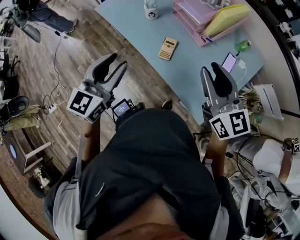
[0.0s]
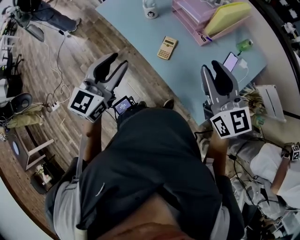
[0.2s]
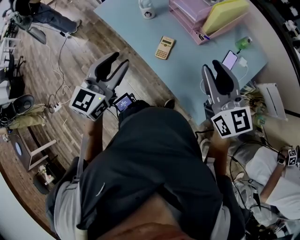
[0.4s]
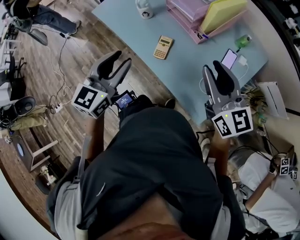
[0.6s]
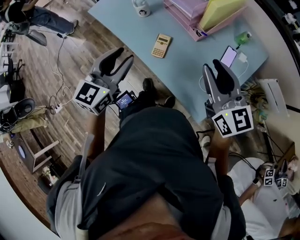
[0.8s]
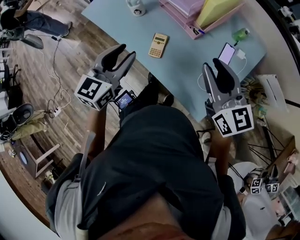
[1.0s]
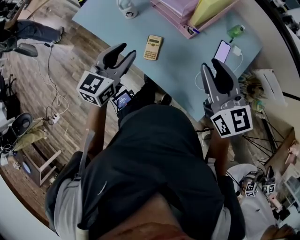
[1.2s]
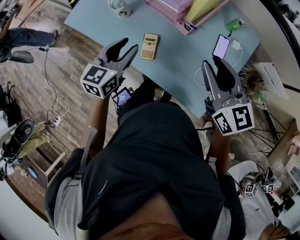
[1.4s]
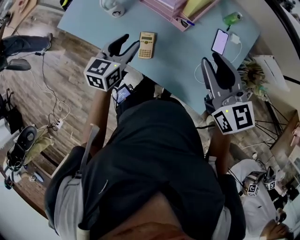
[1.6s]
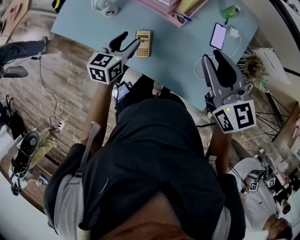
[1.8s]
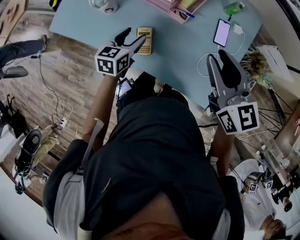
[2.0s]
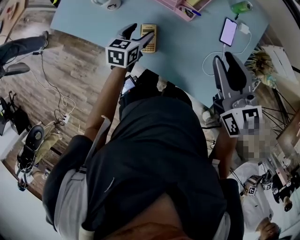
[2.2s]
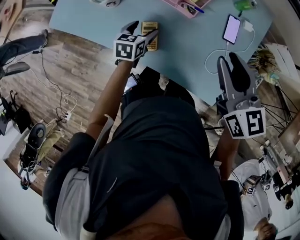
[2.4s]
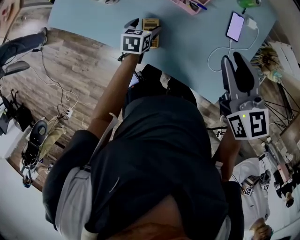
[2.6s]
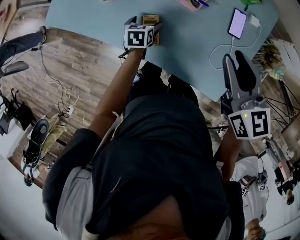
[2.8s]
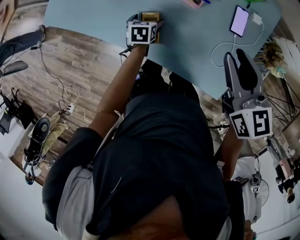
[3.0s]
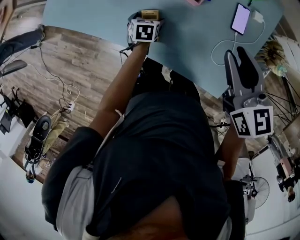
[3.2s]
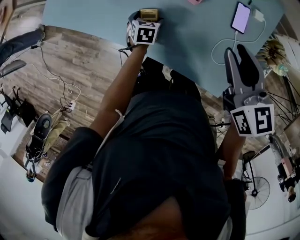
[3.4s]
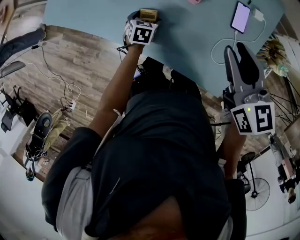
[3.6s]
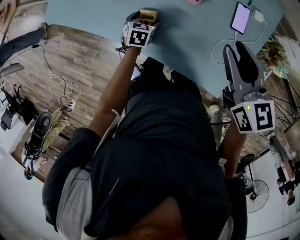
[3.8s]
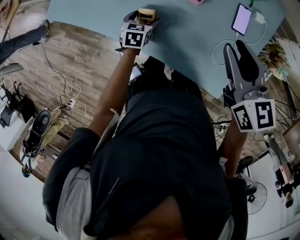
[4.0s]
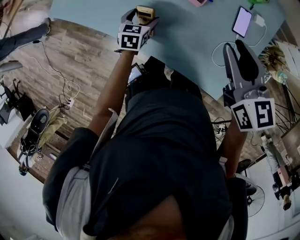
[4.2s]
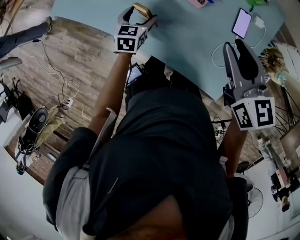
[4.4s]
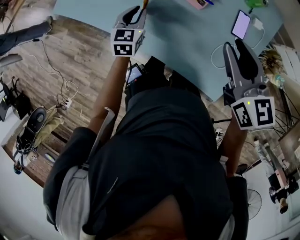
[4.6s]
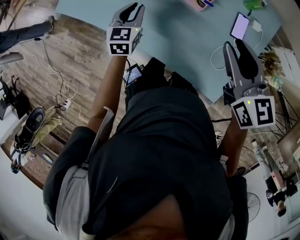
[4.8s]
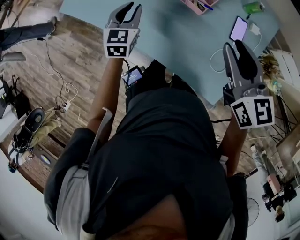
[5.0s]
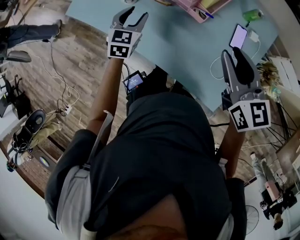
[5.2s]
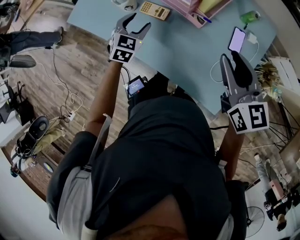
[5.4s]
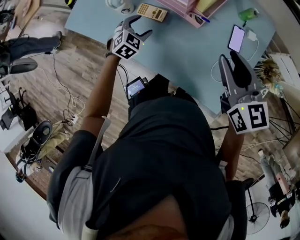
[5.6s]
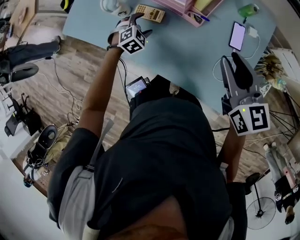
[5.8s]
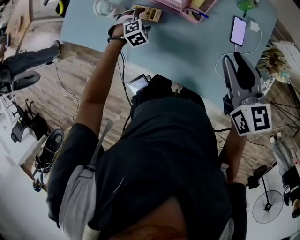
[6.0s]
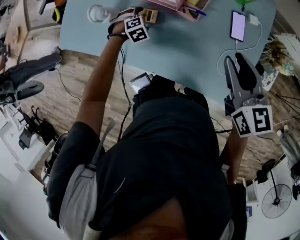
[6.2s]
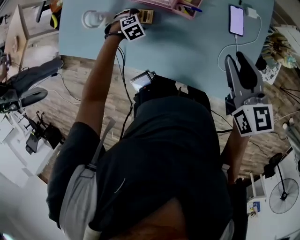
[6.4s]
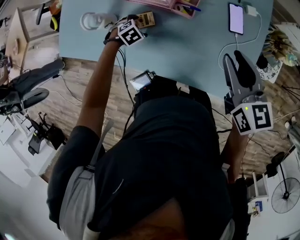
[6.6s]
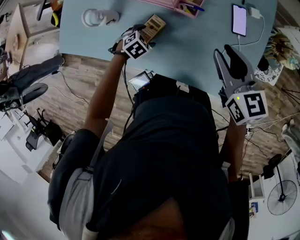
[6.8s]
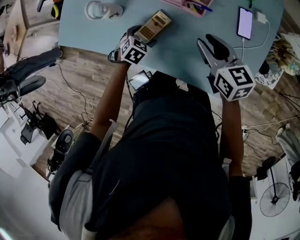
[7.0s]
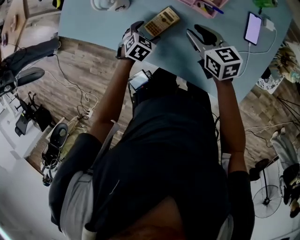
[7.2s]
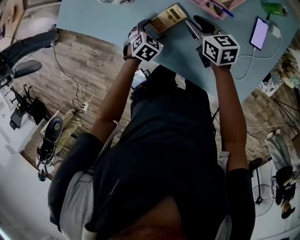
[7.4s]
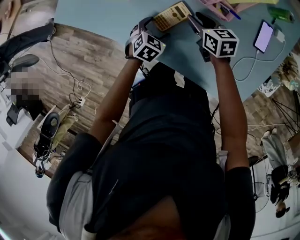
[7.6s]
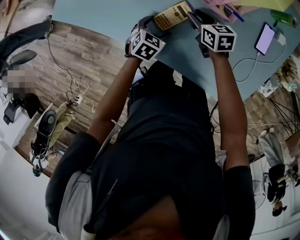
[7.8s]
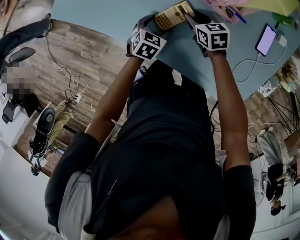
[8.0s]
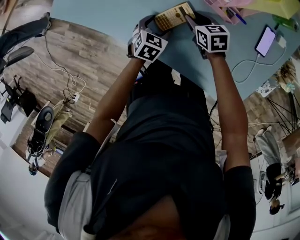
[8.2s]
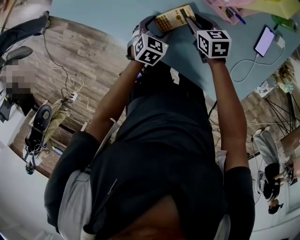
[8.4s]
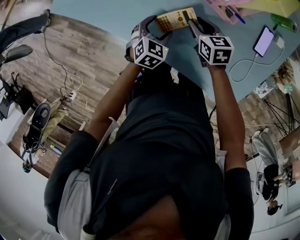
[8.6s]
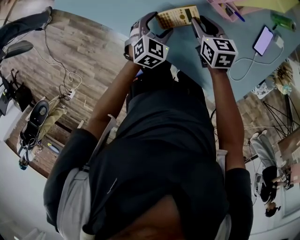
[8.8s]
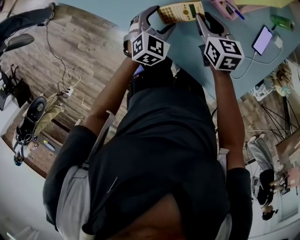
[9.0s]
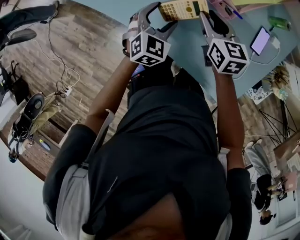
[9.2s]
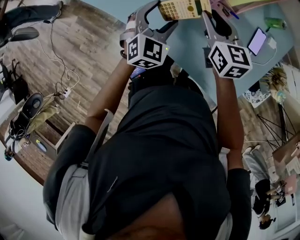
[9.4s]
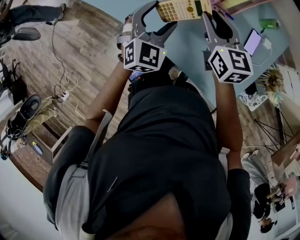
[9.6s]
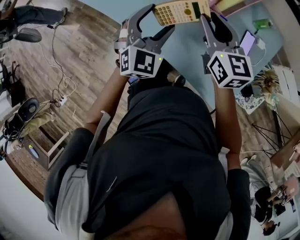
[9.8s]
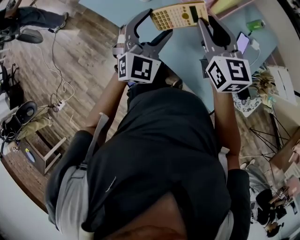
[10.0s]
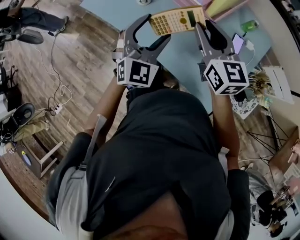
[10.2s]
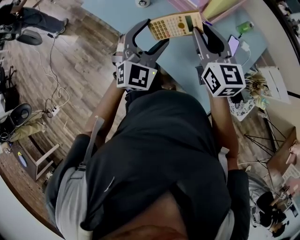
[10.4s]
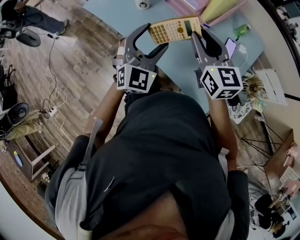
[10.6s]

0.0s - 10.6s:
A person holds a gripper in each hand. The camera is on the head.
0.0s - 1.6s: The right gripper travels forward, to the right and downward by roughly 15 cm; the left gripper goes approximately 25 cm forward, downward and to the right, and turns by about 20 degrees.
1.6s - 3.0s: The left gripper goes about 25 cm downward, tips its fingers downward by some 30 degrees, and opens up; the right gripper shifts about 5 cm downward.
3.0s - 4.6s: The left gripper shifts some 15 cm upward, changes its angle by roughly 30 degrees, and closes up.
4.6s - 6.0s: The left gripper heads downward and forward, covering about 15 cm, rolls clockwise, seen from behind, by some 60 degrees, and opens.
6.0s - 7.6s: The left gripper ends up about 10 cm from where it was, and twists some 40 degrees counterclockwise, seen from behind, while the right gripper heads downward, covering about 30 cm, and changes its angle by approximately 30 degrees.
7.6s - 9.0s: The two grippers go approximately 10 cm upward. The left gripper changes its angle by roughly 20 degrees.
9.0s - 10.6s: The two grippers go about 35 cm upward and backward. The right gripper changes its angle by some 30 degrees, while the left gripper points its fingers roughly 30 degrees further upward.

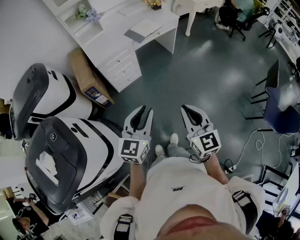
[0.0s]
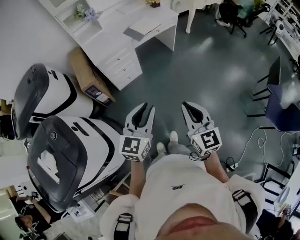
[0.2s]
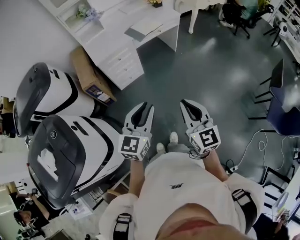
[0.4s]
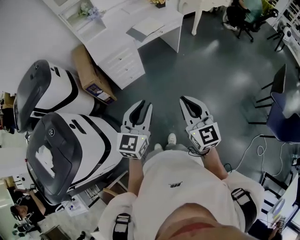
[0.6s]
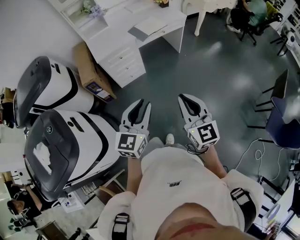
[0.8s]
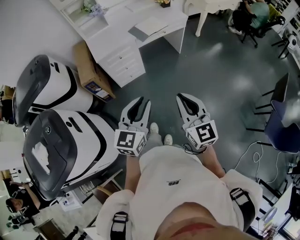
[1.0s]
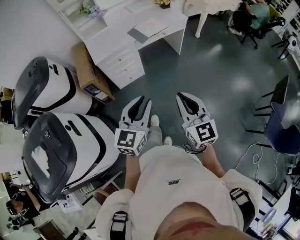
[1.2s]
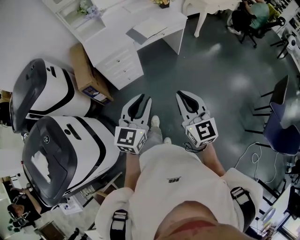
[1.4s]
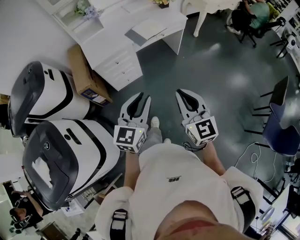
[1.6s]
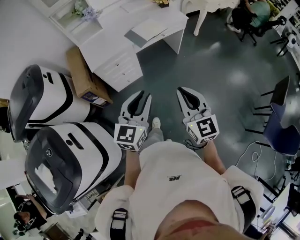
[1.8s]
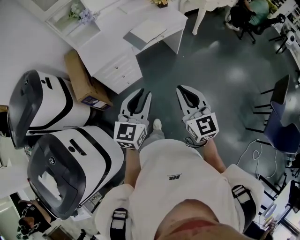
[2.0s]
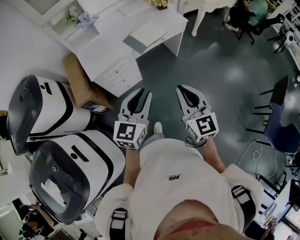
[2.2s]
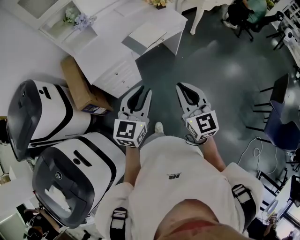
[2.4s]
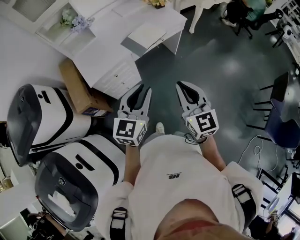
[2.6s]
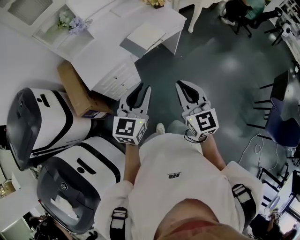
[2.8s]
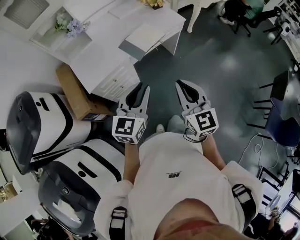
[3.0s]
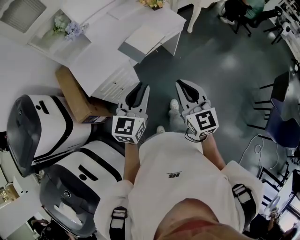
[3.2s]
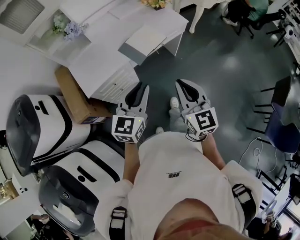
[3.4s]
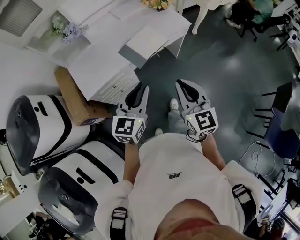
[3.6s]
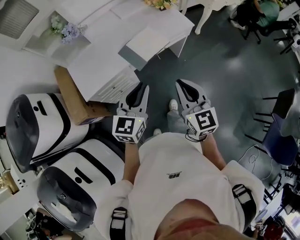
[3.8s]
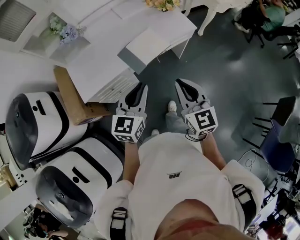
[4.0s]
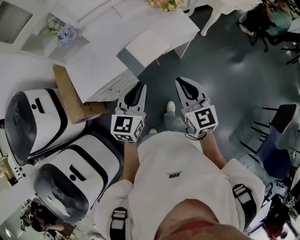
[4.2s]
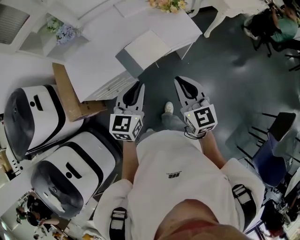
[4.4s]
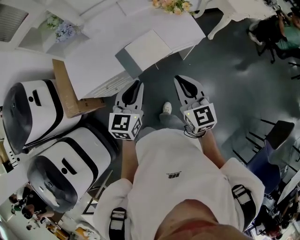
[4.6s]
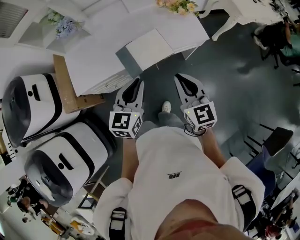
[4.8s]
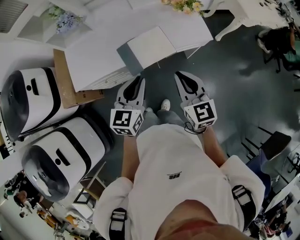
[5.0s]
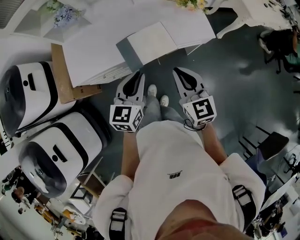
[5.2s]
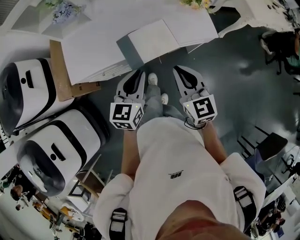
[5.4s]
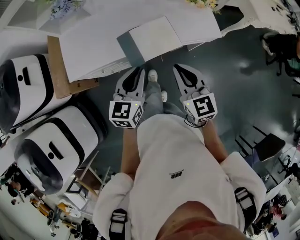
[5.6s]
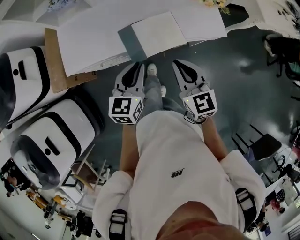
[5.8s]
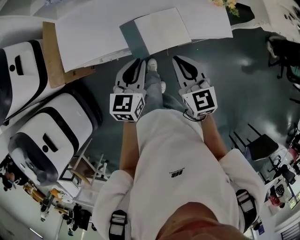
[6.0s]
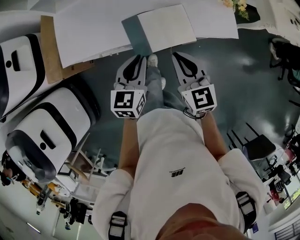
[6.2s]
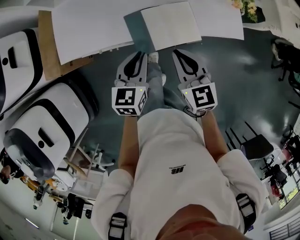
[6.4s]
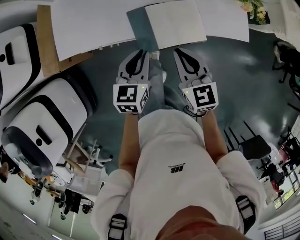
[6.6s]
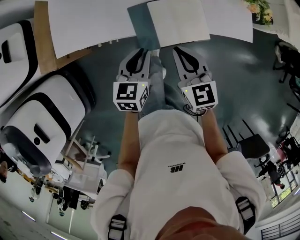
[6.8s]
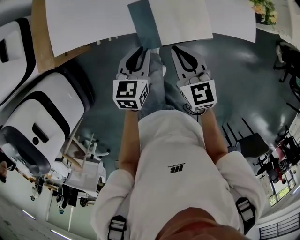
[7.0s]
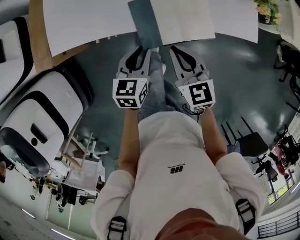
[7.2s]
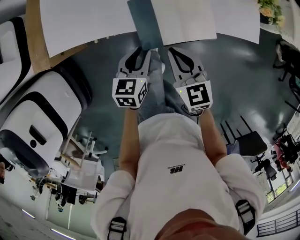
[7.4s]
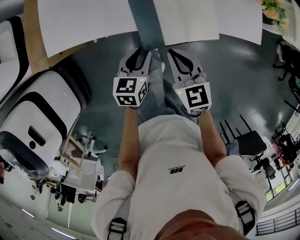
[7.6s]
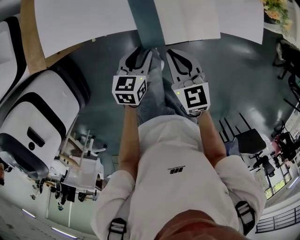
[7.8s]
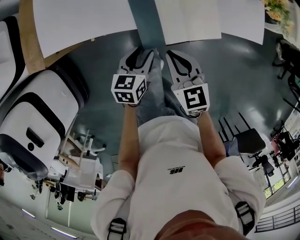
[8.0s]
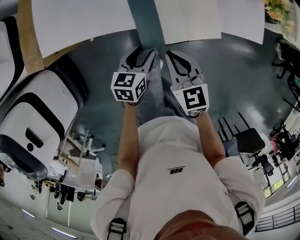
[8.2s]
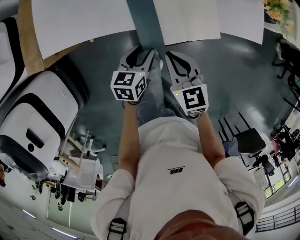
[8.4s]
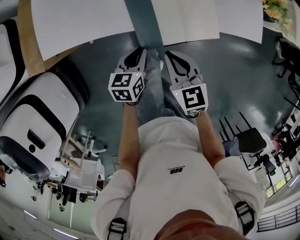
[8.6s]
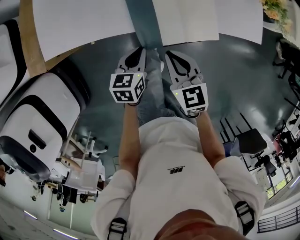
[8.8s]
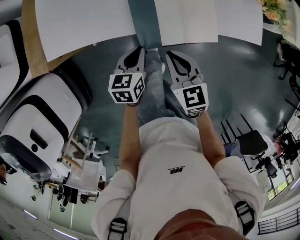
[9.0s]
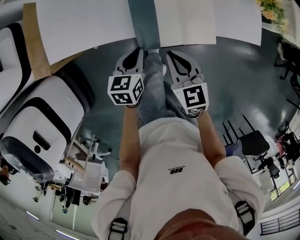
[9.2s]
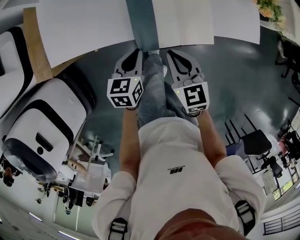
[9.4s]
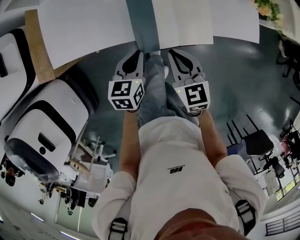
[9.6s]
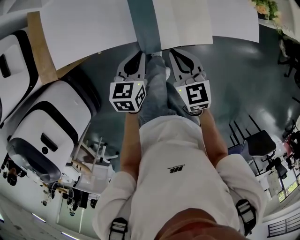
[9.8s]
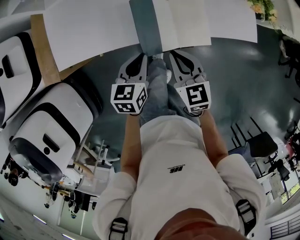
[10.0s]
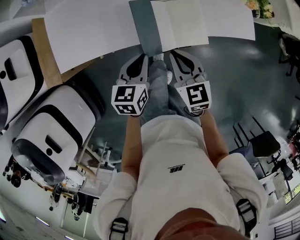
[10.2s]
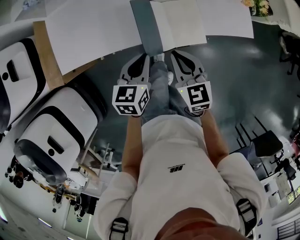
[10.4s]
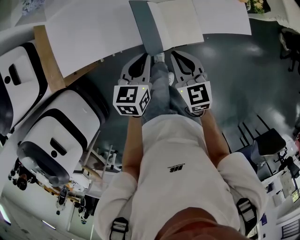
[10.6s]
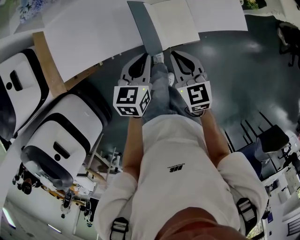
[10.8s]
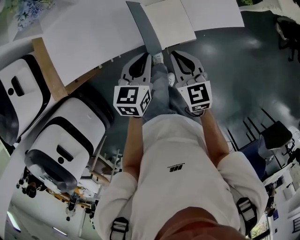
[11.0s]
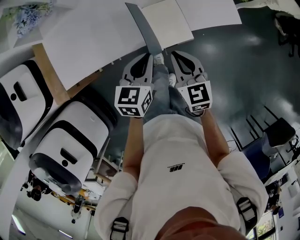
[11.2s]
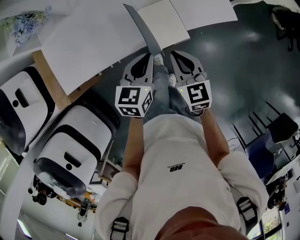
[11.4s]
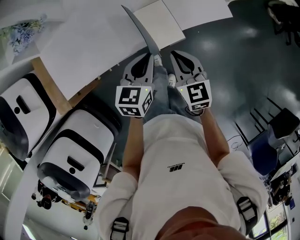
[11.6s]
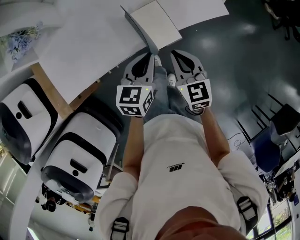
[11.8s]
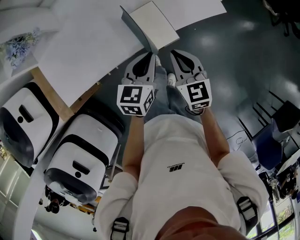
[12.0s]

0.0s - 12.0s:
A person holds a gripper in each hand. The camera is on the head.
0.0s - 1.6s: Both grippers travel together forward, approximately 15 cm.
1.6s - 3.0s: The two grippers go roughly 25 cm forward.
3.0s - 4.4s: The grippers both shift forward by about 25 cm.
4.4s - 6.0s: The left gripper shifts about 15 cm downward and forward, and rotates some 20 degrees, while the right gripper is displaced forward and downward by about 20 cm, and swivels roughly 20 degrees.
6.0s - 7.6s: The right gripper is displaced downward and to the left by about 20 cm, while the left gripper shifts some 20 cm downward.
7.6s - 9.0s: The grippers make only small movements.
9.0s - 10.4s: The left gripper shifts about 10 cm upward. Meanwhile the right gripper goes some 5 cm upward.
10.4s - 12.0s: The two grippers go roughly 10 cm to the right. The left gripper changes its angle by some 20 degrees.

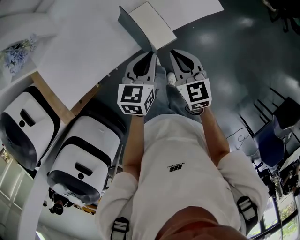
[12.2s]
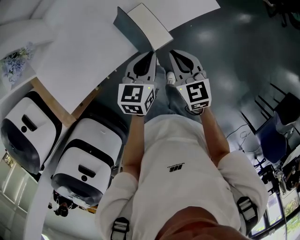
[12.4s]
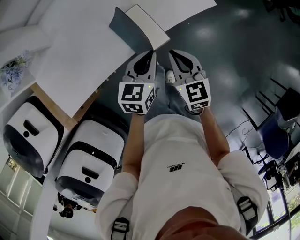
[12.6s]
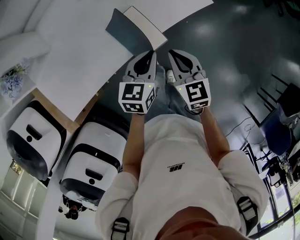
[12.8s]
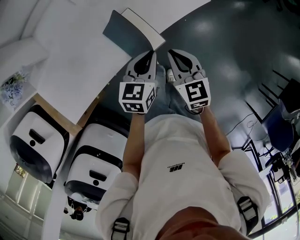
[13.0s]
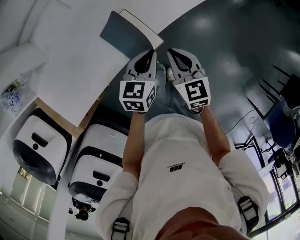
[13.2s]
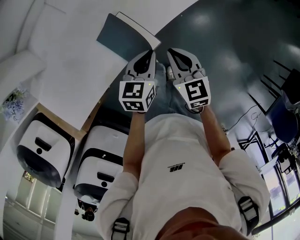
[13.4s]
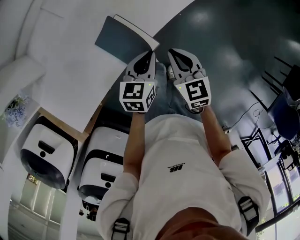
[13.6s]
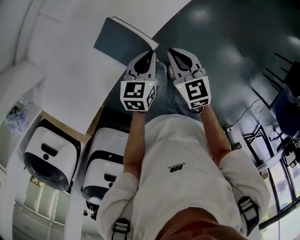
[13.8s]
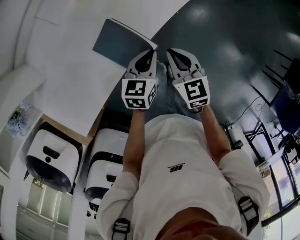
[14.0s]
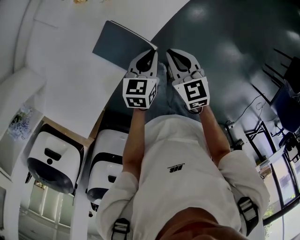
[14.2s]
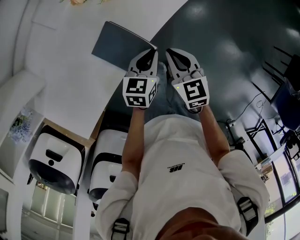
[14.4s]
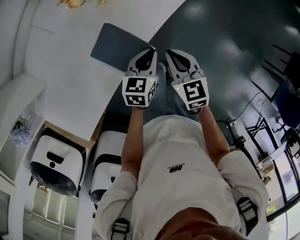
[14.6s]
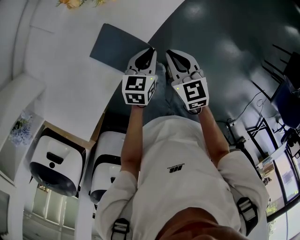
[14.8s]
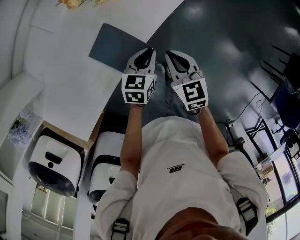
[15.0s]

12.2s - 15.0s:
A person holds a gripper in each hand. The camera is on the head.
12.2s - 13.6s: The left gripper travels to the right, downward and forward by approximately 10 cm, while the right gripper travels to the right by some 5 cm.
13.6s - 15.0s: The left gripper moves downward, about 5 cm.
